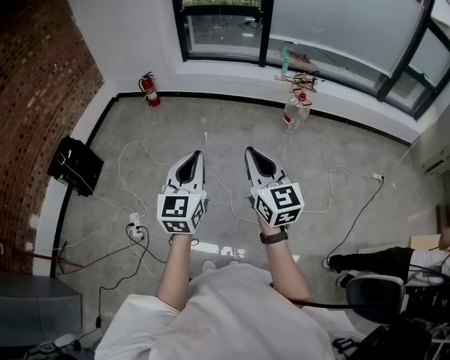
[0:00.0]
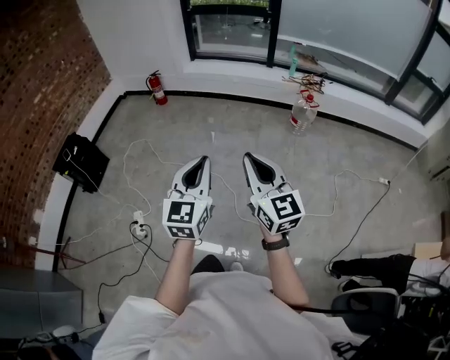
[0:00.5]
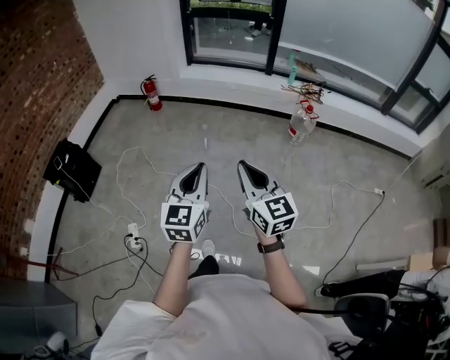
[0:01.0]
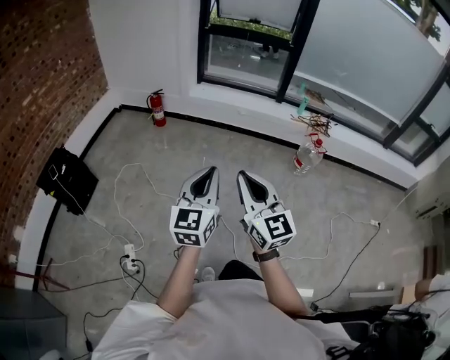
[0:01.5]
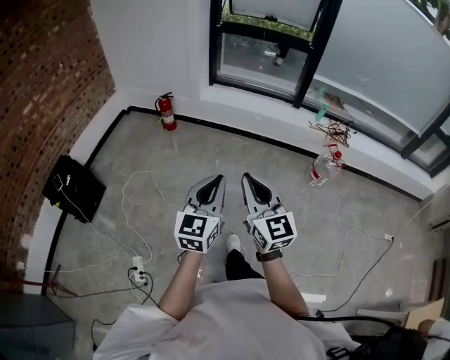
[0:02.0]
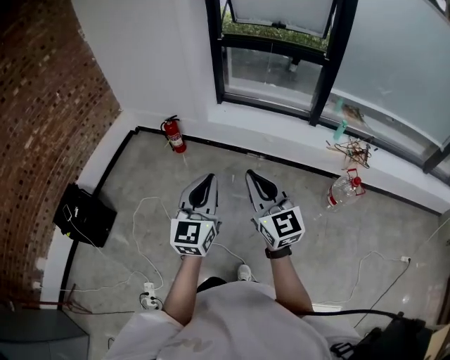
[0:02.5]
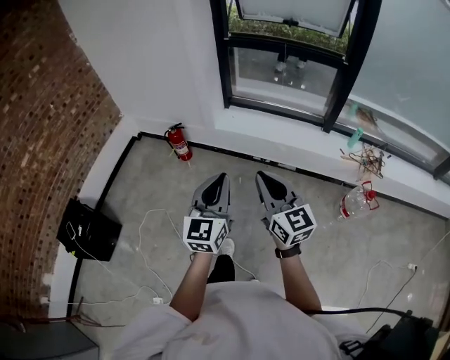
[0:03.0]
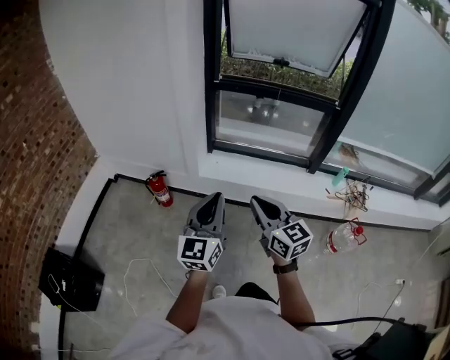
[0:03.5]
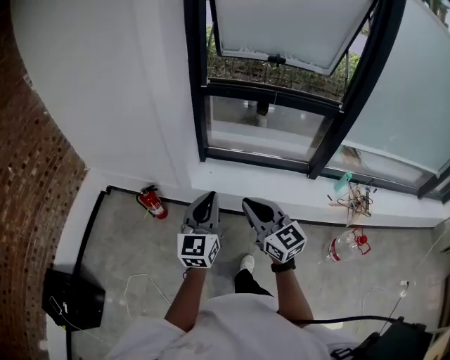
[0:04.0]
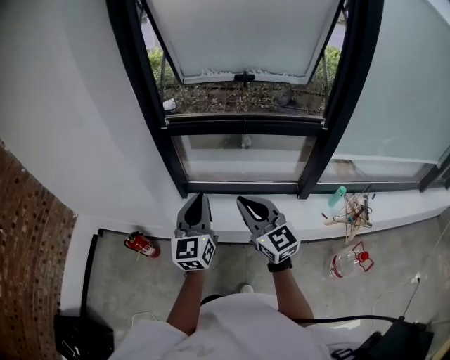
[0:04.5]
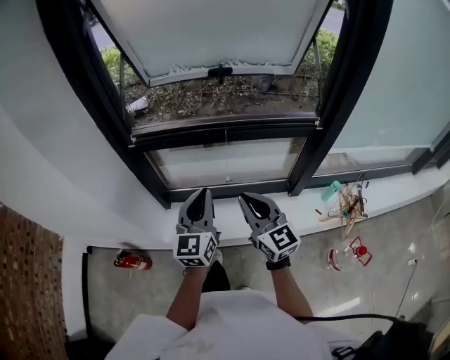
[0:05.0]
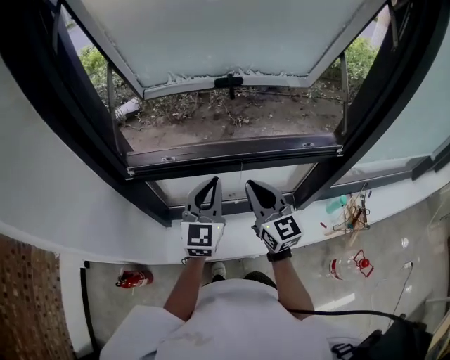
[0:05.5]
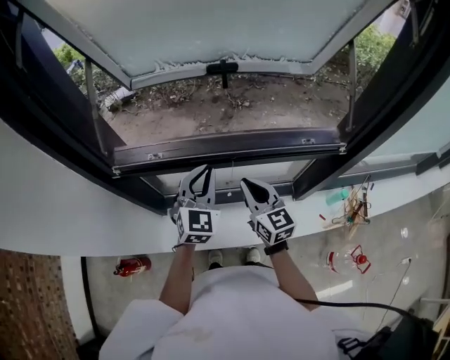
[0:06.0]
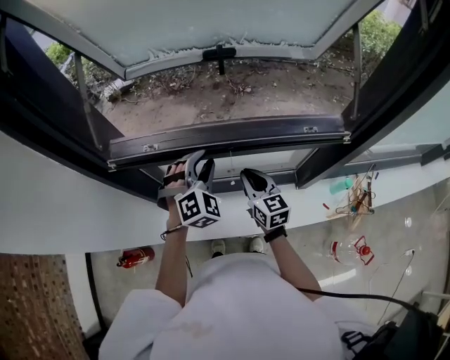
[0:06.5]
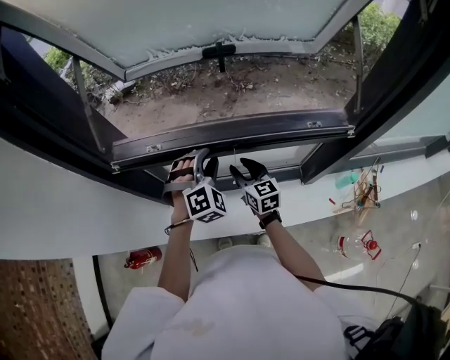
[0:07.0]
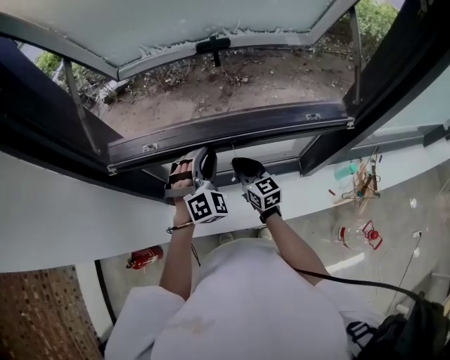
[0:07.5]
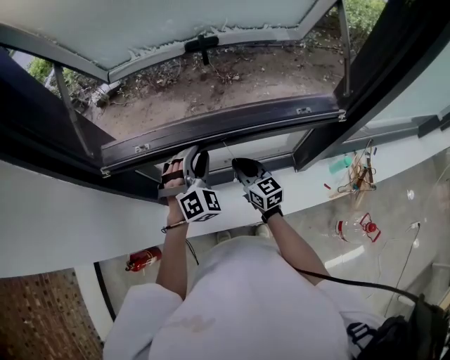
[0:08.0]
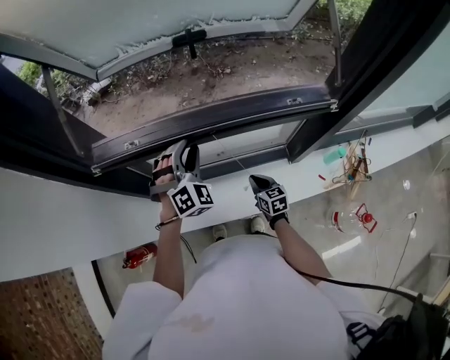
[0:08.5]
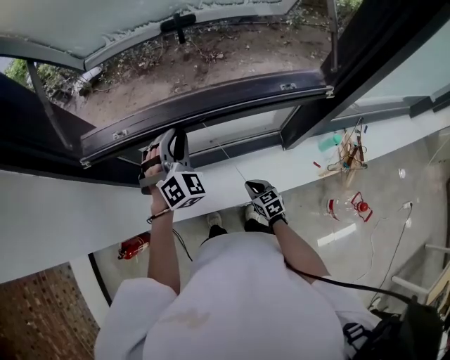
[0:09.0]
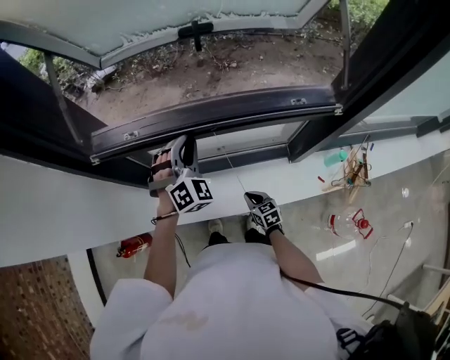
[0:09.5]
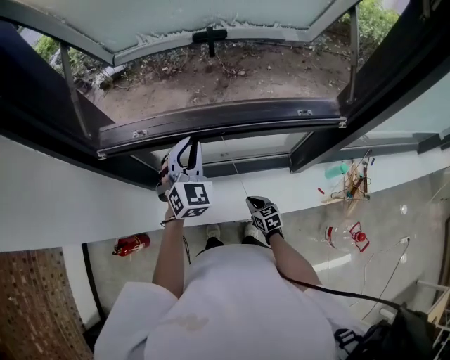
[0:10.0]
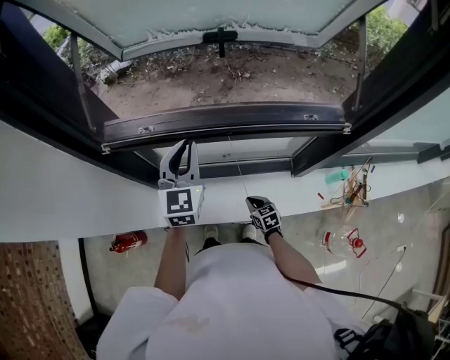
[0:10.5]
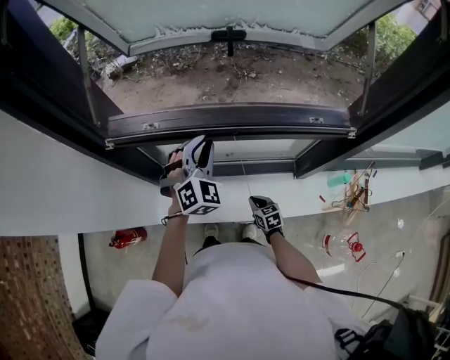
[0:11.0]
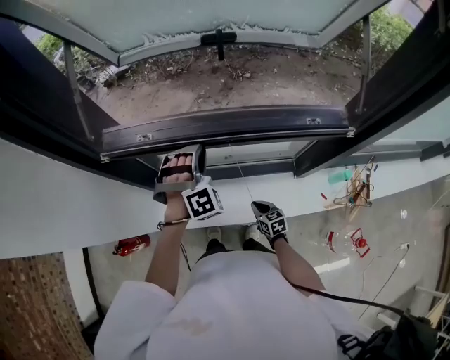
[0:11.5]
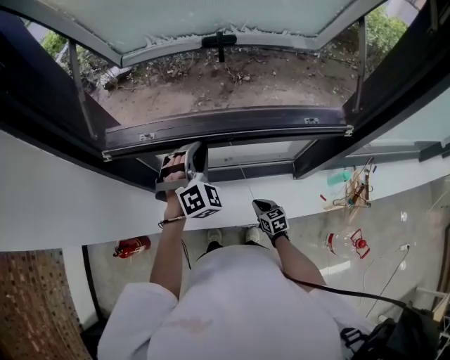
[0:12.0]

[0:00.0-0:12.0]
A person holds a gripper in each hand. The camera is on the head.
0:00.0 to 0:02.0: The pair of grippers is taken forward, some 40 cm.
0:02.0 to 0:04.0: Both grippers are carried forward, approximately 80 cm.
0:04.0 to 0:06.0: The pair of grippers is taken forward and to the right, about 70 cm. The right gripper rotates roughly 30 degrees, while the left gripper turns by approximately 30 degrees.
0:06.0 to 0:08.0: The left gripper travels downward by approximately 5 cm, changes its angle by some 40 degrees, and opens its fingers, while the right gripper is displaced downward by about 10 cm, and opens, then closes again.
0:08.0 to 0:10.0: The left gripper rotates approximately 30 degrees. Meanwhile the right gripper goes roughly 25 cm downward and backward, and swivels roughly 30 degrees.
0:10.0 to 0:12.0: The left gripper swivels some 30 degrees.

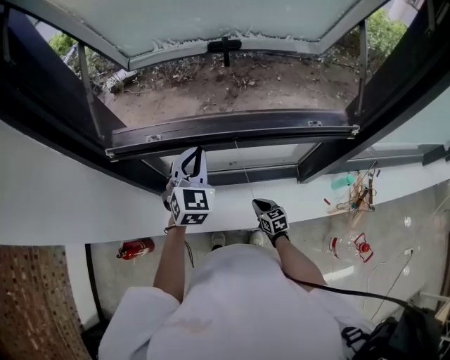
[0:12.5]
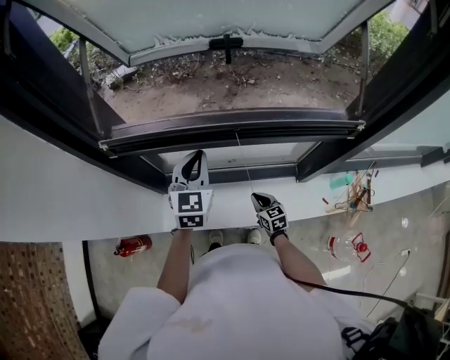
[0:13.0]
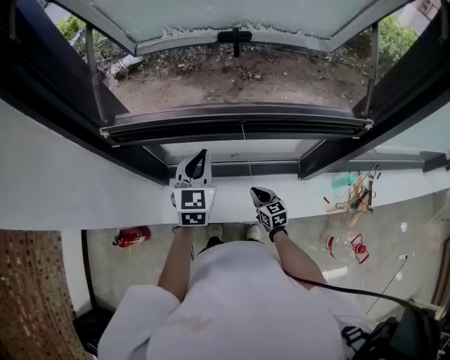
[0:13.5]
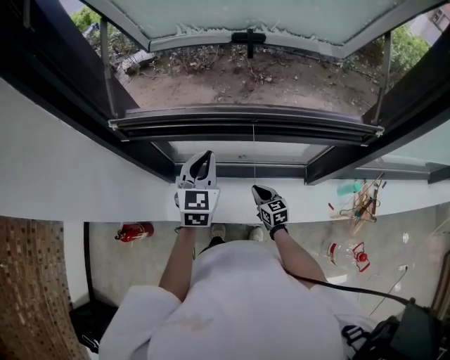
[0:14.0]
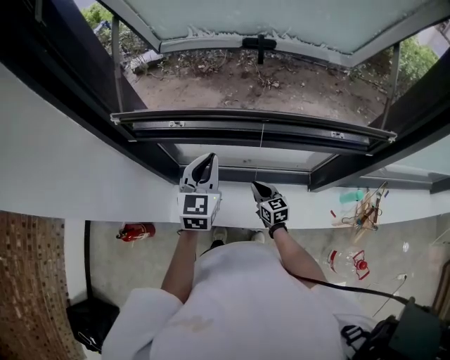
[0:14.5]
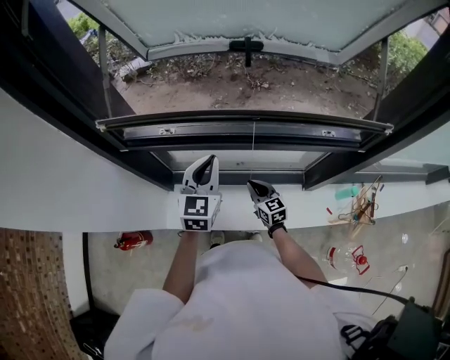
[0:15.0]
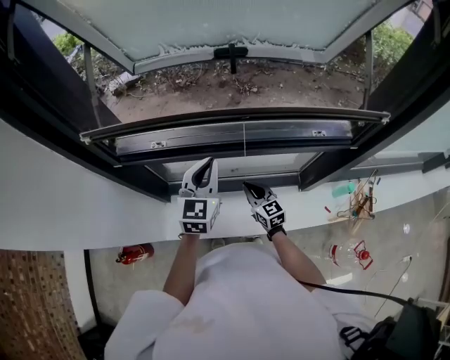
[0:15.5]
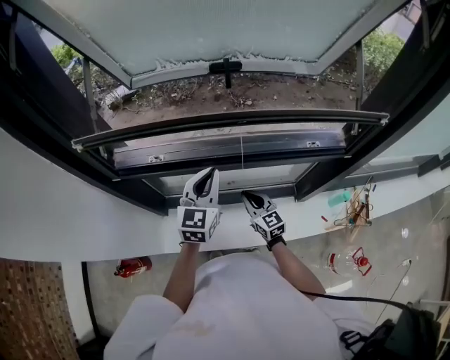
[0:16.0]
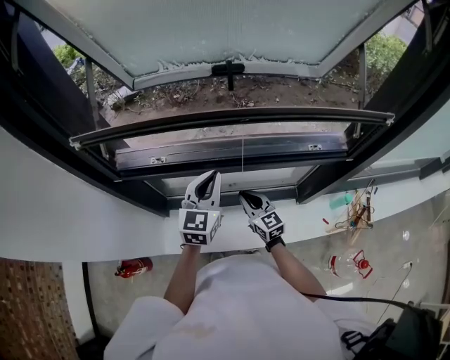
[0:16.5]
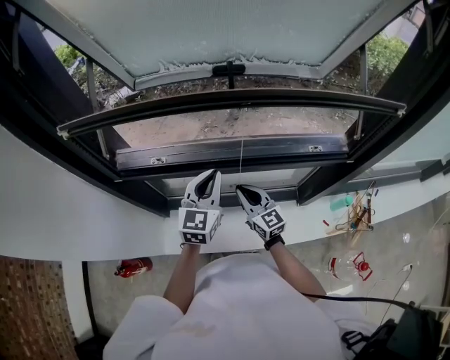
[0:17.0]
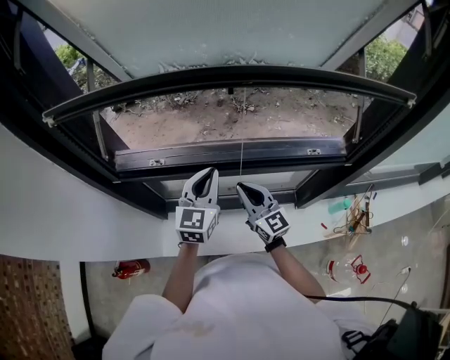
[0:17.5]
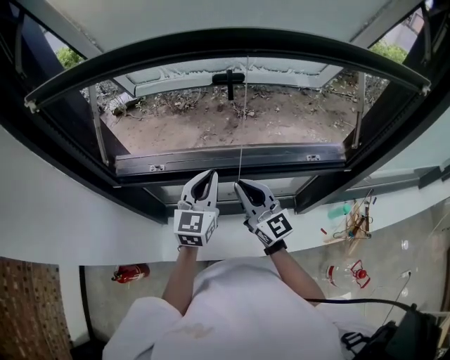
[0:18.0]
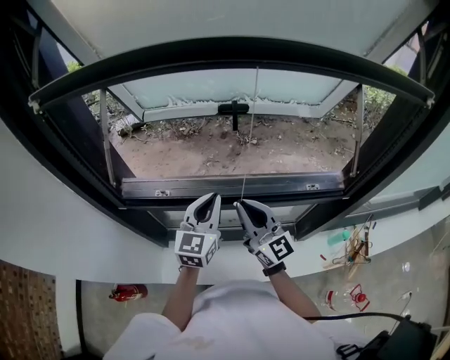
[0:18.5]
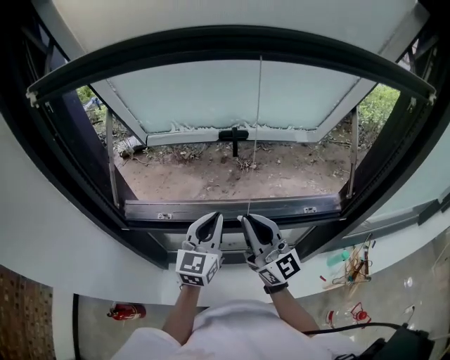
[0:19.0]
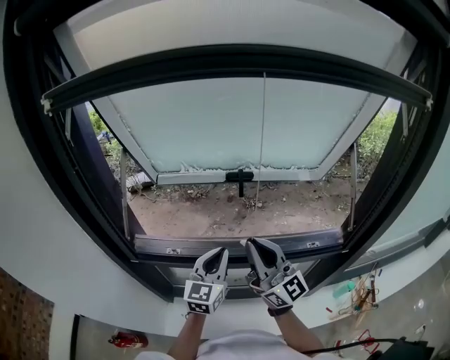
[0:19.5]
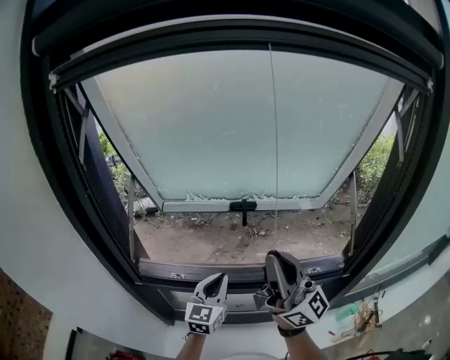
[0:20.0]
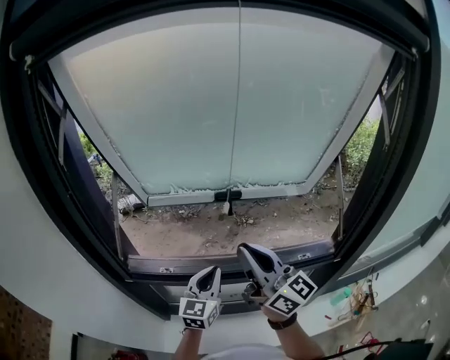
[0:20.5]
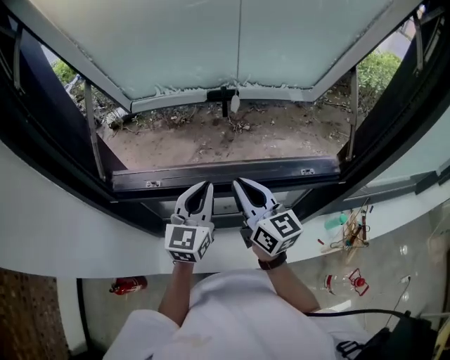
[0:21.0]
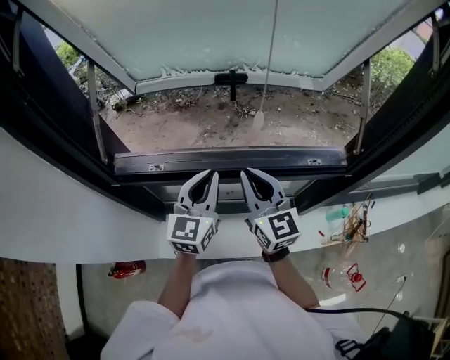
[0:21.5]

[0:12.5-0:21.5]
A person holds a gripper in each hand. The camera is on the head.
0:12.5 to 0:14.5: The right gripper goes roughly 10 cm forward and upward; the left gripper turns by some 20 degrees.
0:14.5 to 0:17.0: The left gripper heads to the right, covering some 5 cm. The right gripper shifts some 15 cm upward, and swivels roughly 20 degrees.
0:17.0 to 0:19.5: The left gripper shifts approximately 5 cm upward; the right gripper goes about 30 cm upward, and tilts its fingers about 40 degrees upward.
0:19.5 to 0:21.5: The right gripper travels downward by about 10 cm, and tips its fingers downward by approximately 30 degrees.

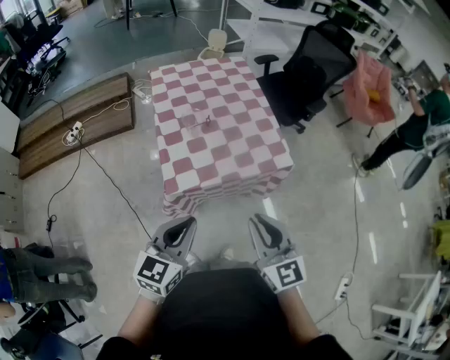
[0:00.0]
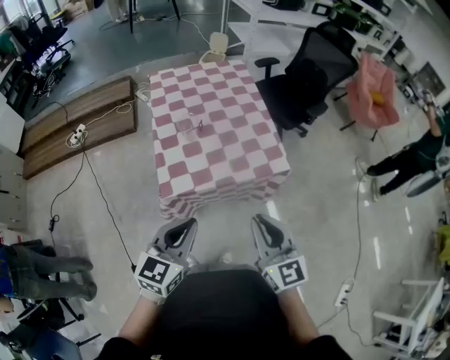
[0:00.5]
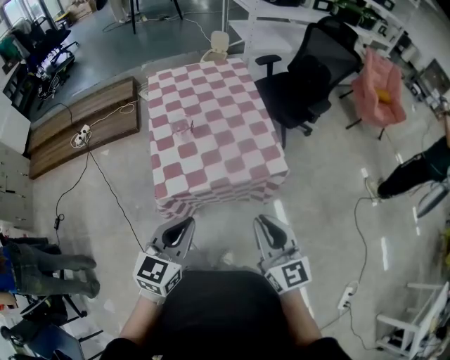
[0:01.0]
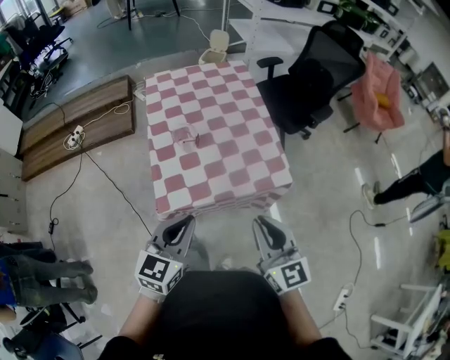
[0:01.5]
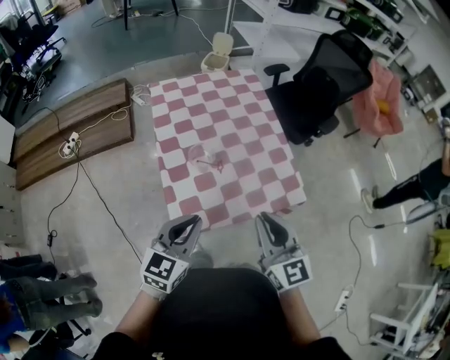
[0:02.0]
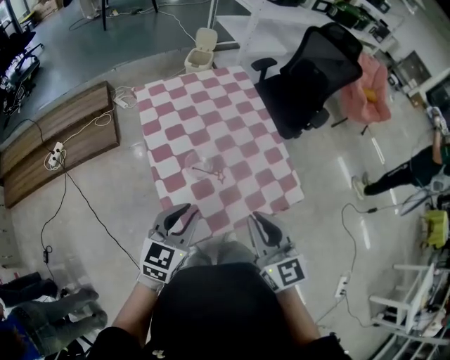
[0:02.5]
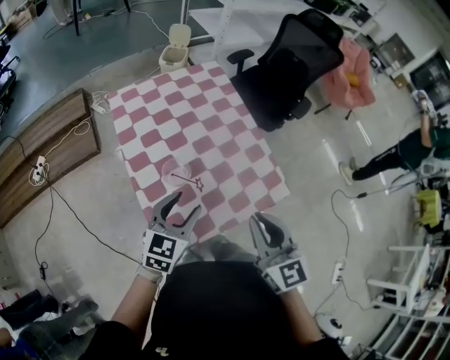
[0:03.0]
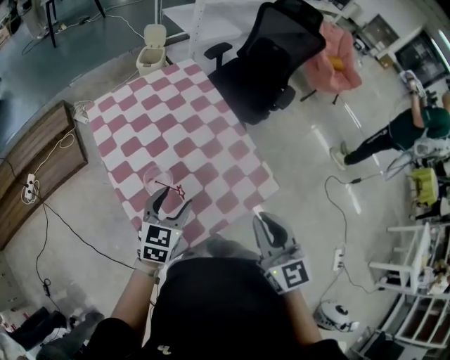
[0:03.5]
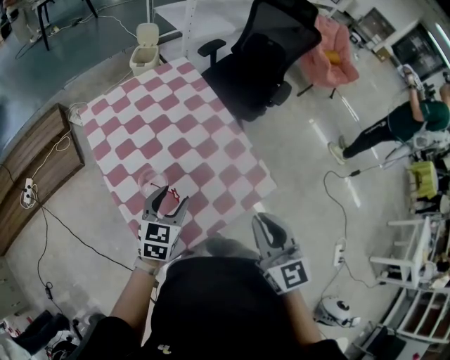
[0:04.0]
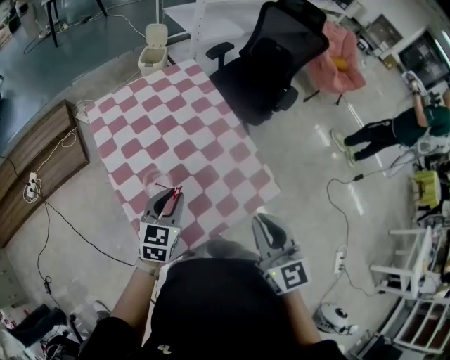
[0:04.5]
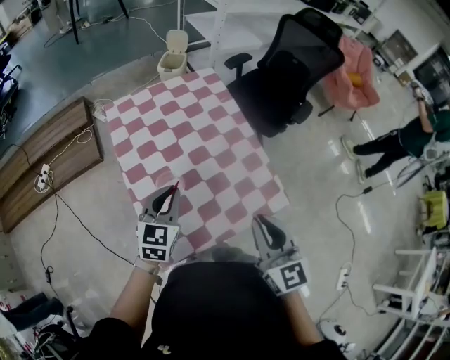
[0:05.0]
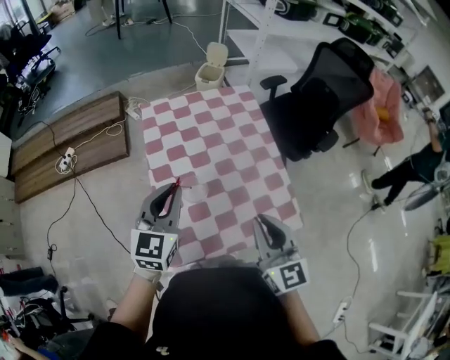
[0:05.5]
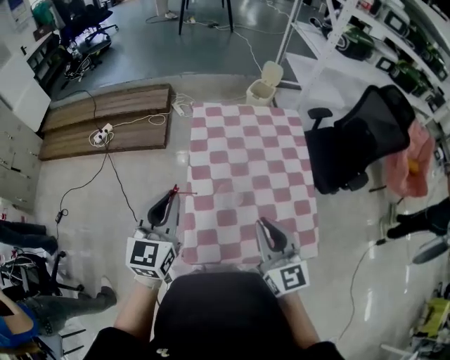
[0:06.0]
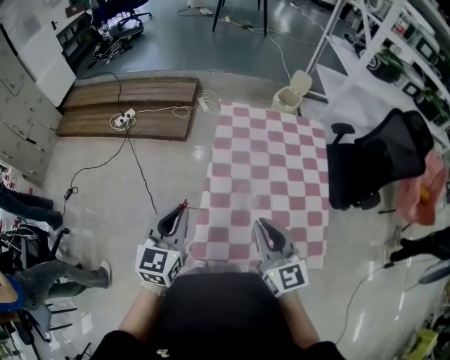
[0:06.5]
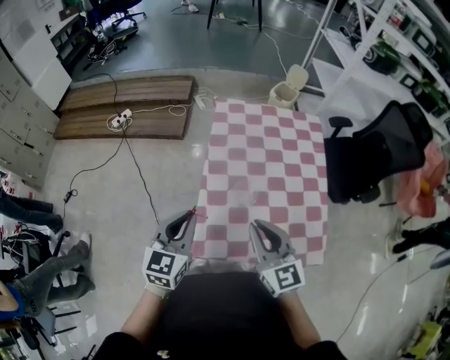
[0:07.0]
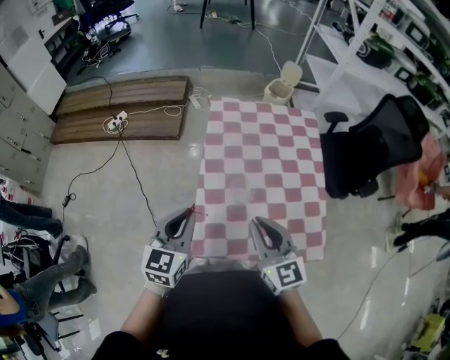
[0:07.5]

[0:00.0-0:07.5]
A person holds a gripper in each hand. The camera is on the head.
0:00.0 to 0:02.0: Both grippers move forward, roughly 20 cm.
0:02.0 to 0:04.0: The left gripper heads forward and downward, covering roughly 20 cm, and opens up. Meanwhile the right gripper moves forward and to the right, roughly 10 cm.
0:04.0 to 0:05.5: The right gripper heads to the left, covering approximately 5 cm. The left gripper travels upward and to the left by approximately 20 cm, swivels some 30 degrees, and closes its fingers.
0:05.5 to 0:07.5: The left gripper shifts about 15 cm to the left and backward. The right gripper shifts approximately 10 cm to the left, and swivels approximately 20 degrees.
